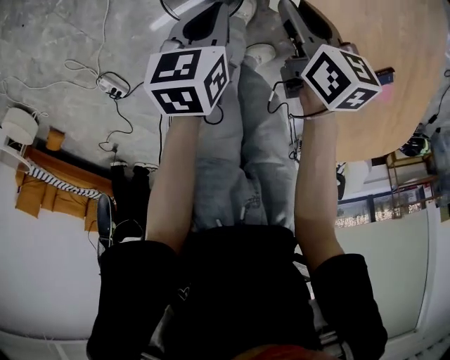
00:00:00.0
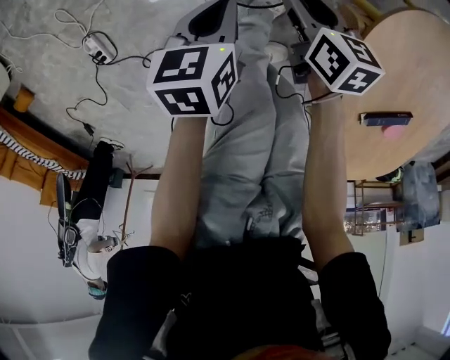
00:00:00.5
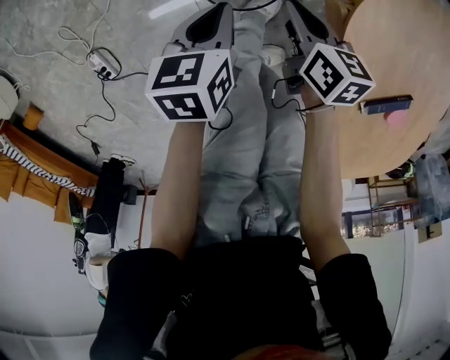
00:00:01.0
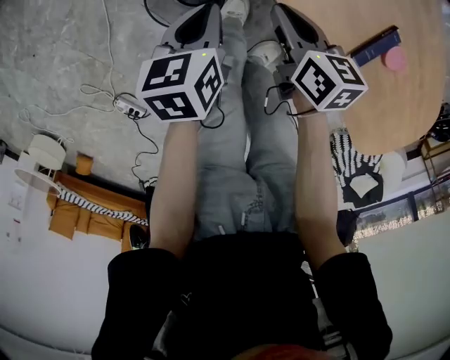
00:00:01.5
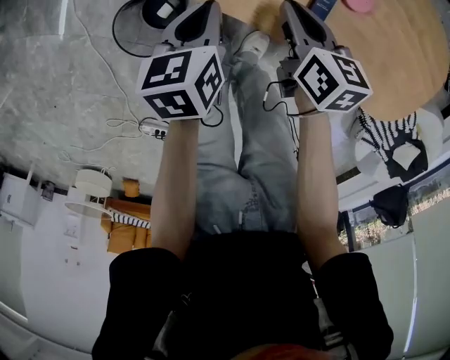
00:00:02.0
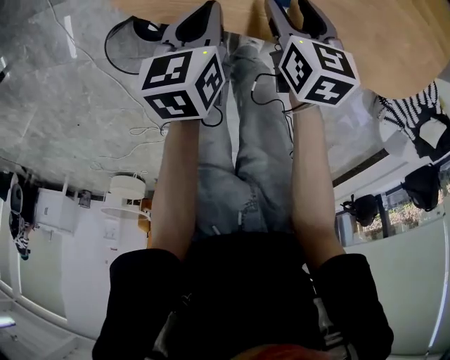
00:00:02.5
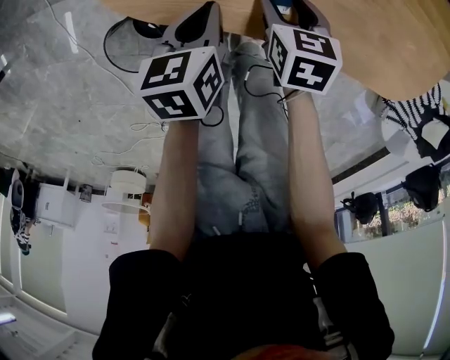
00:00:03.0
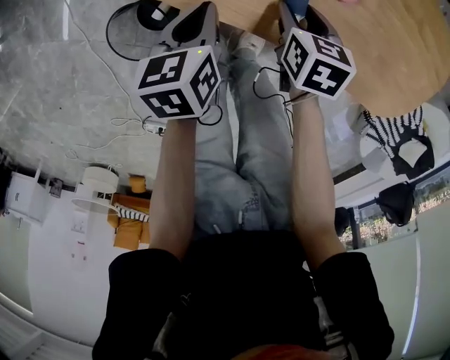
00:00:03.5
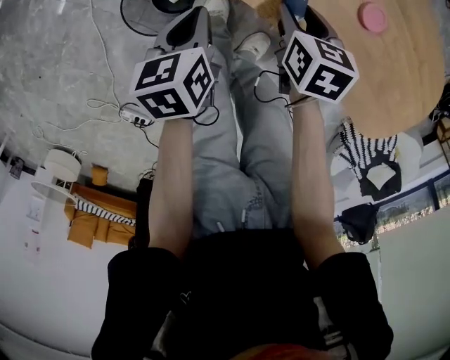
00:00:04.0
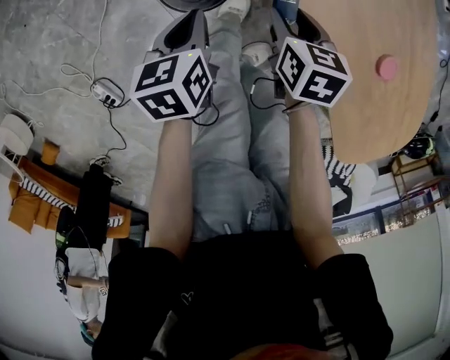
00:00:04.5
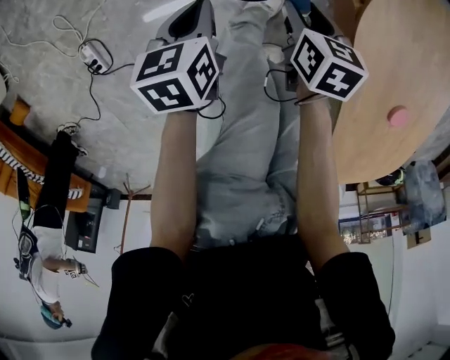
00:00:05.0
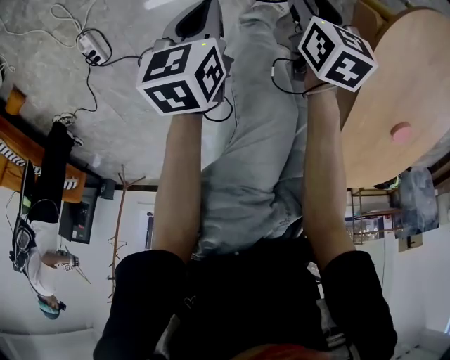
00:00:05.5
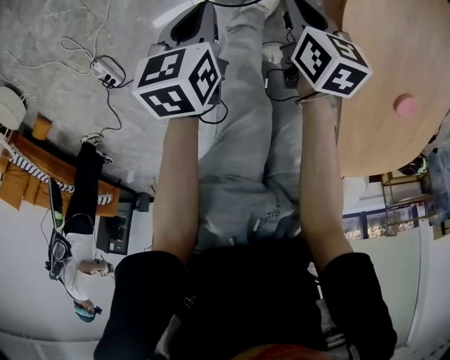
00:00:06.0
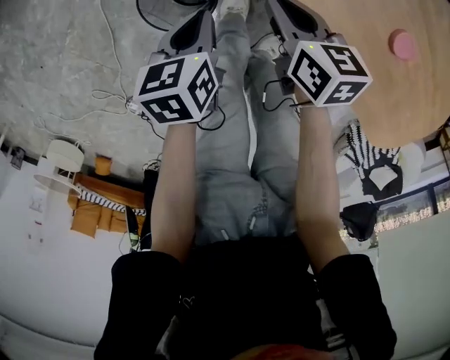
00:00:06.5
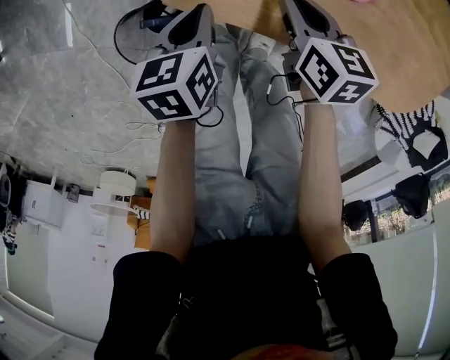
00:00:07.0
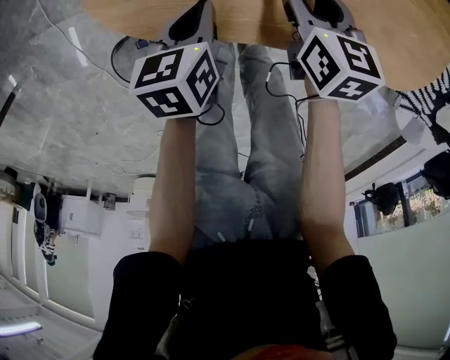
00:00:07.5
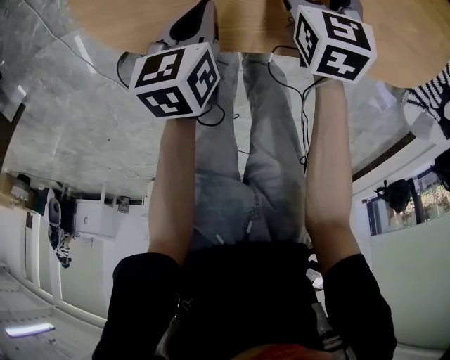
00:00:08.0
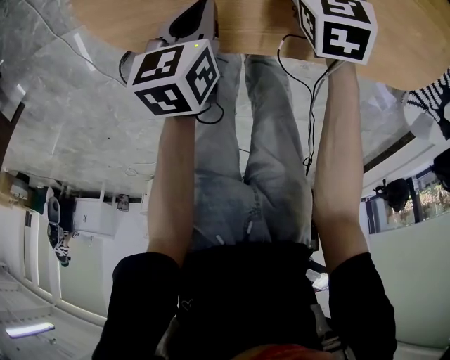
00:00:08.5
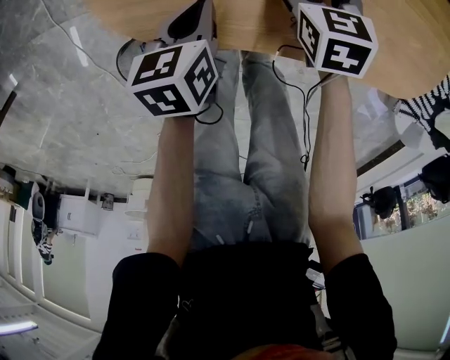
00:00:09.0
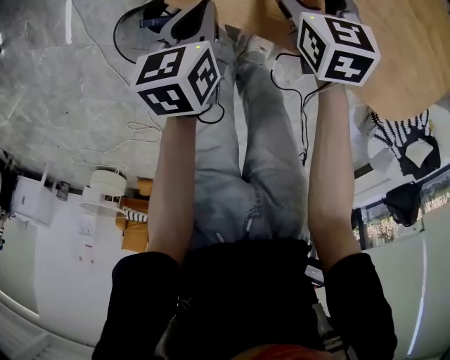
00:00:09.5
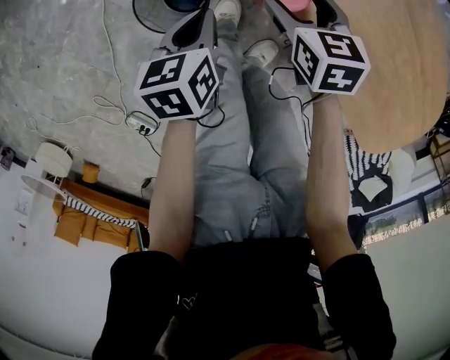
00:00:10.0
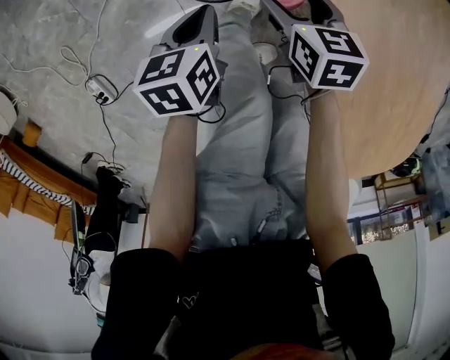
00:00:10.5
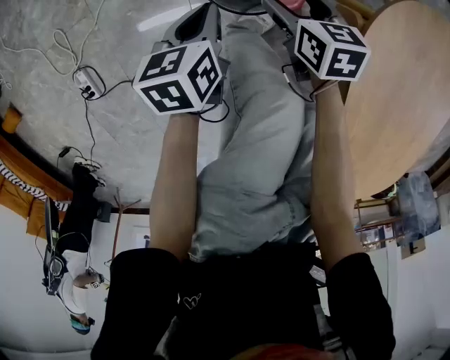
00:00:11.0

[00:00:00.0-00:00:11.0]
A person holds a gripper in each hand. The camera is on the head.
00:00:00.0 to 00:00:02.0: The left gripper changes place by approximately 20 cm, and swivels about 30 degrees. Meanwhile the right gripper reaches approximately 10 cm downward, then returns, and changes its angle by roughly 30 degrees.
00:00:02.0 to 00:00:03.5: The right gripper heads to the right and downward, covering approximately 10 cm, changes its angle by some 20 degrees, and opens its fingers.
00:00:03.5 to 00:00:05.5: The right gripper moves some 40 cm, and rotates some 50 degrees; the left gripper changes place by about 40 cm, and changes its angle by approximately 60 degrees.
00:00:05.5 to 00:00:07.5: The pair of grippers is taken roughly 40 cm. The right gripper swivels some 70 degrees, and closes and opens again; the left gripper rotates some 70 degrees.
00:00:07.5 to 00:00:09.0: The right gripper opens up.
00:00:09.0 to 00:00:11.0: The two grippers travel together, some 40 cm. The left gripper turns by some 70 degrees; the right gripper swivels some 70 degrees.

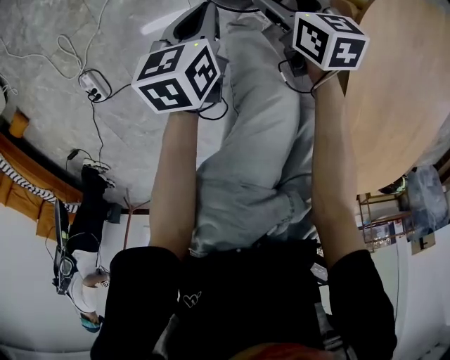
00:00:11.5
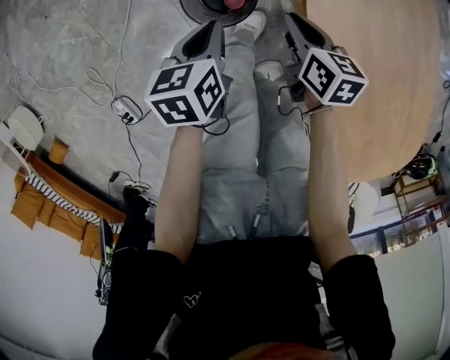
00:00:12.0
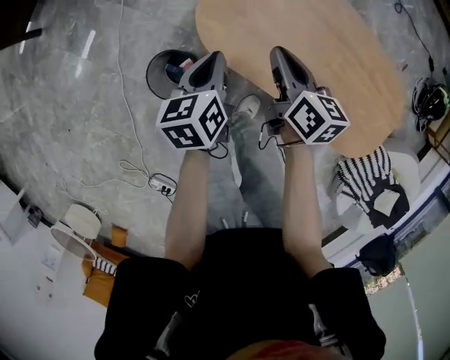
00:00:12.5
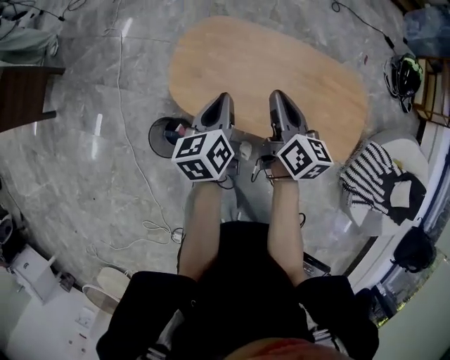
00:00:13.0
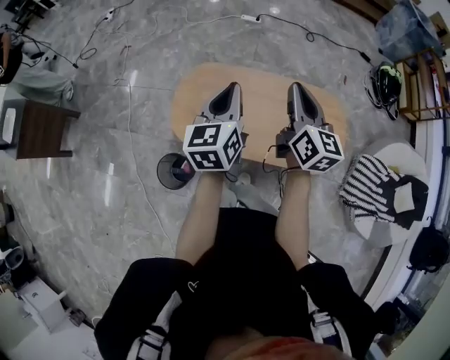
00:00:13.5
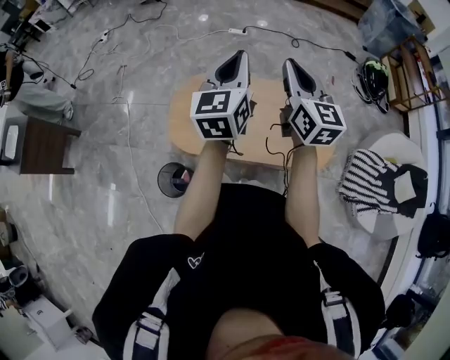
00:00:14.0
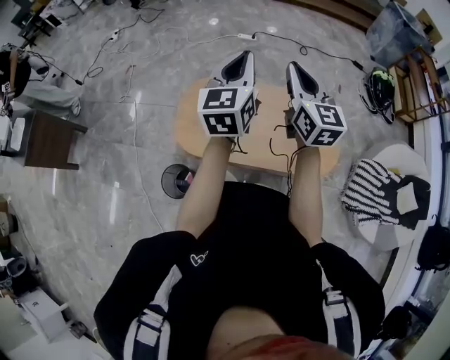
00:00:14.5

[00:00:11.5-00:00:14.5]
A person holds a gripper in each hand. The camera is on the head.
00:00:11.5 to 00:00:13.0: Both grippers are carried about 50 cm. The grippers both shift upward by roughly 50 cm. The right gripper rotates some 90 degrees, and closes. Meanwhile the left gripper swivels about 60 degrees.
00:00:13.0 to 00:00:14.5: Both grippers move upward and to the right, about 30 cm. The left gripper rotates some 40 degrees. Meanwhile the right gripper changes its angle by about 40 degrees.

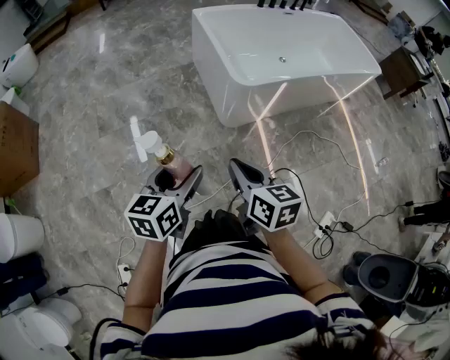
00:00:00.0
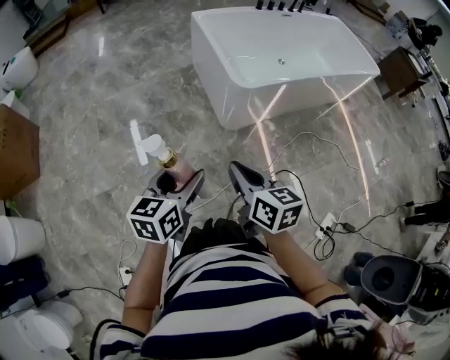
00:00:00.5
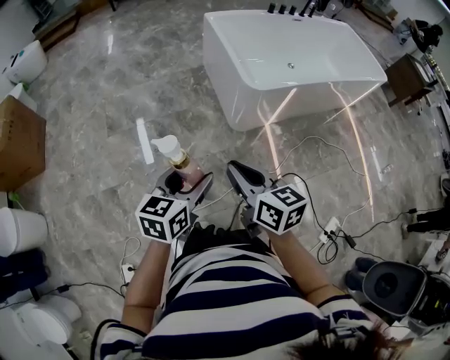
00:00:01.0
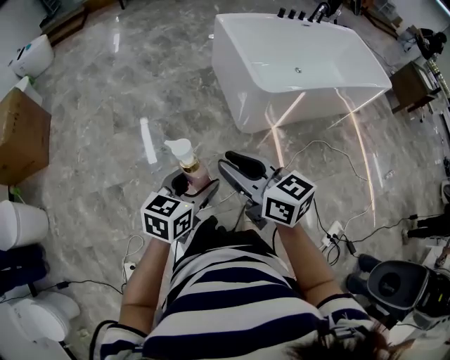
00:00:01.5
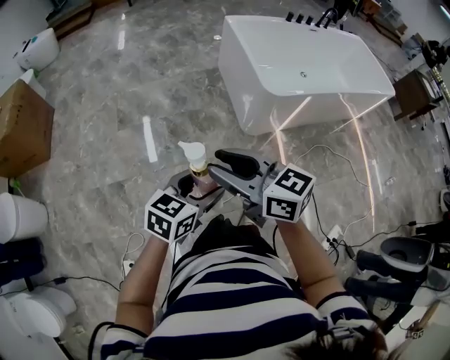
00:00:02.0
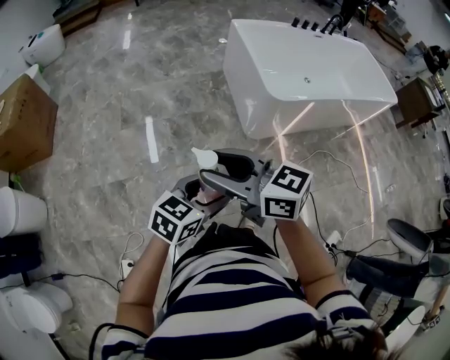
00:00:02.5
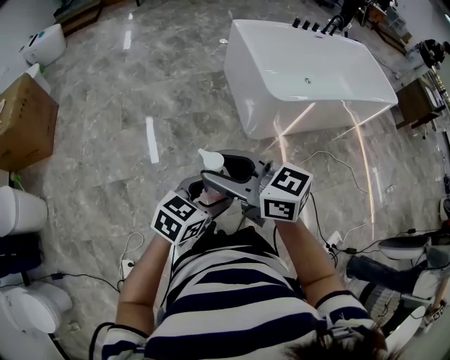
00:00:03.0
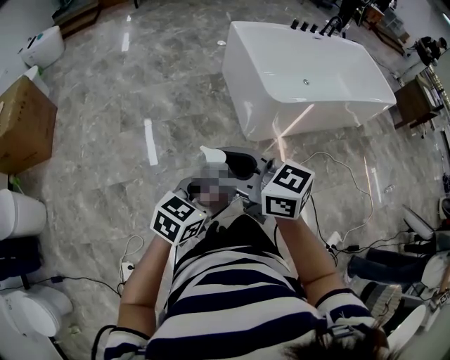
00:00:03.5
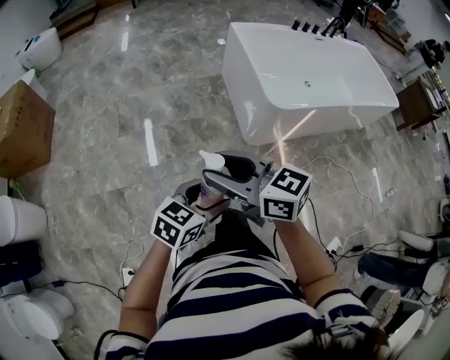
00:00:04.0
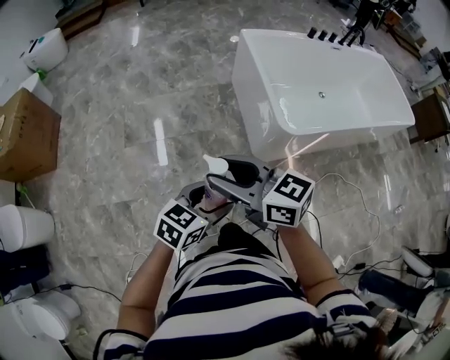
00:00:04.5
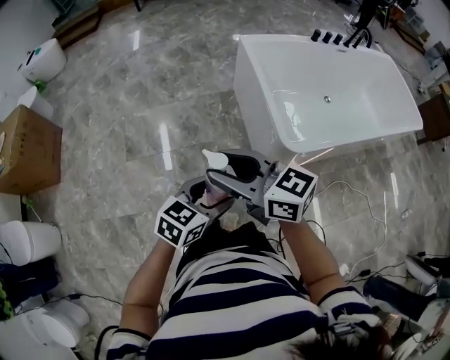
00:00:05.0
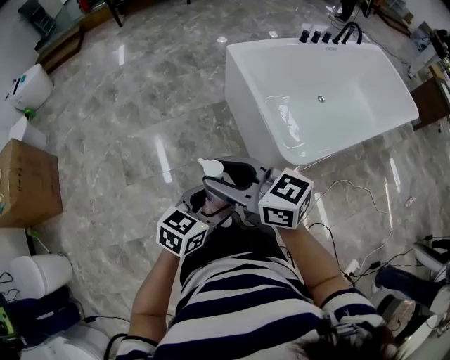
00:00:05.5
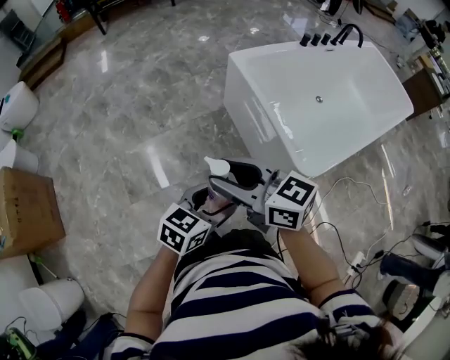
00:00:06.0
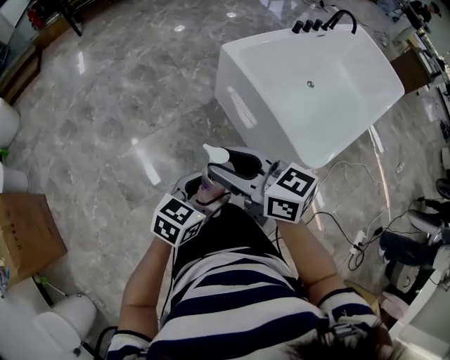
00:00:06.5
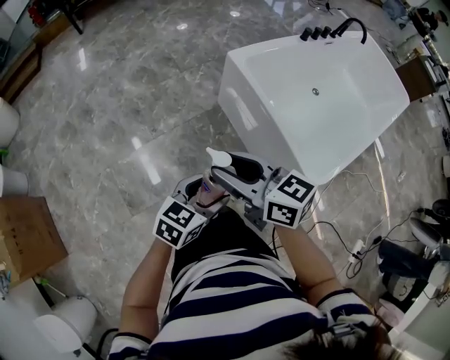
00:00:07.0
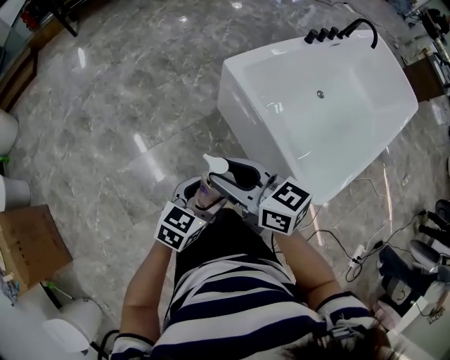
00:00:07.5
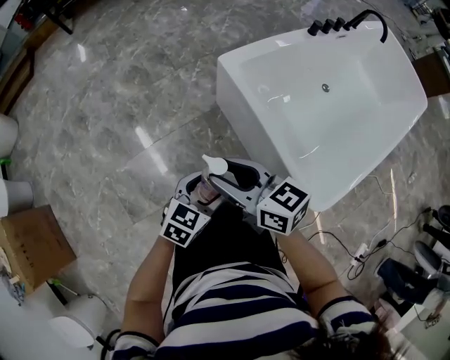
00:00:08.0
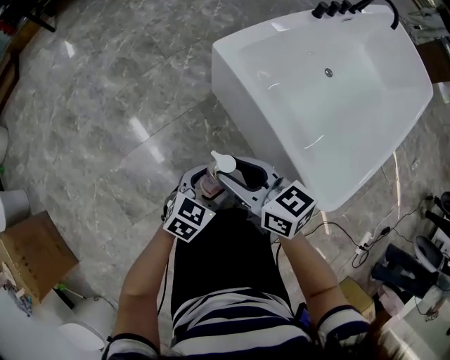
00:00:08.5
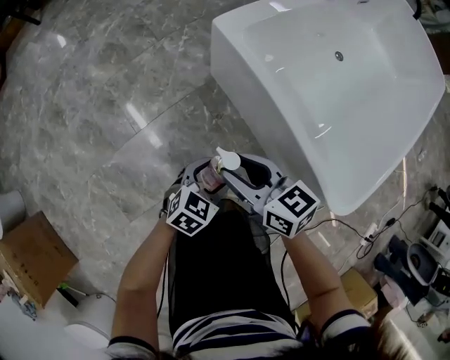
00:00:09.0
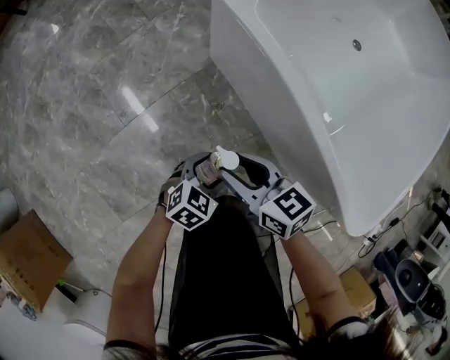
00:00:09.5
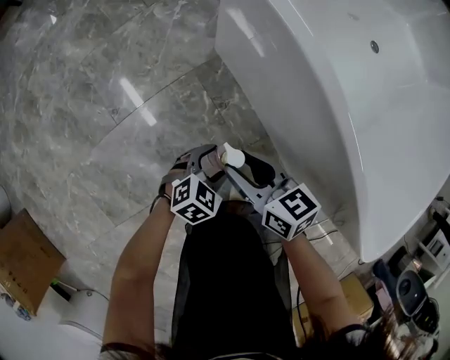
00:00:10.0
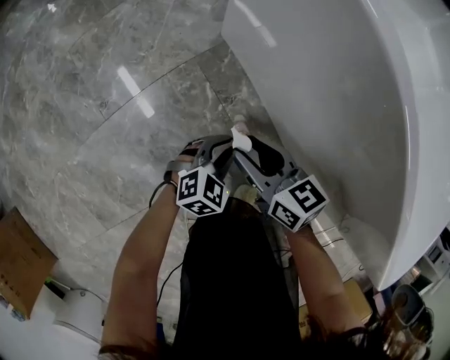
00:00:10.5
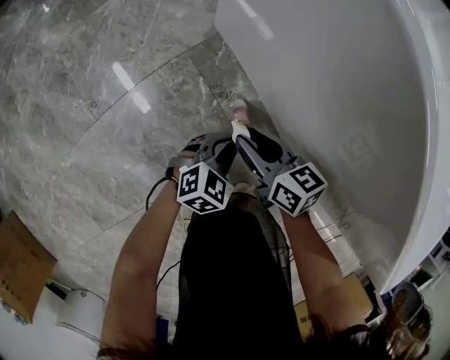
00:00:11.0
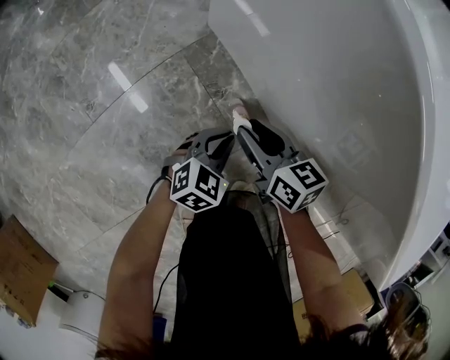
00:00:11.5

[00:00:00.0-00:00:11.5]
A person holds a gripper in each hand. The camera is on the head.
00:00:00.0 to 00:00:02.0: The right gripper is displaced to the left and upward by some 20 cm, rotates some 40 degrees, and opens its fingers. Meanwhile the left gripper heads backward, covering some 5 cm.
00:00:02.0 to 00:00:04.0: The grippers stay close to where they were, moving slightly.
00:00:04.0 to 00:00:06.0: Both grippers travel together forward, some 40 cm.
00:00:06.0 to 00:00:07.5: Both grippers move forward, about 20 cm.
00:00:07.5 to 00:00:09.5: The two grippers go some 35 cm downward. The left gripper swivels roughly 30 degrees.
00:00:09.5 to 00:00:11.5: The left gripper shifts roughly 20 cm downward and forward, and closes its fingers, while the right gripper moves downward, about 25 cm.

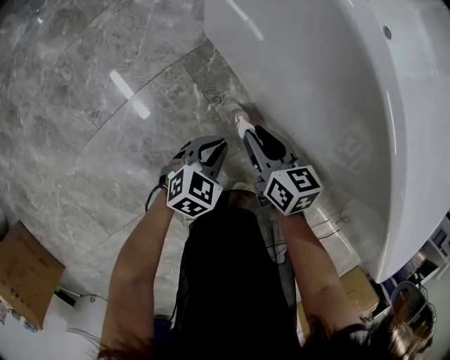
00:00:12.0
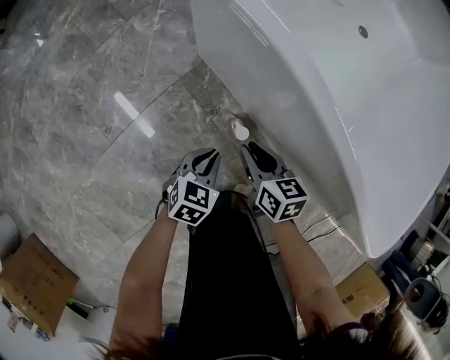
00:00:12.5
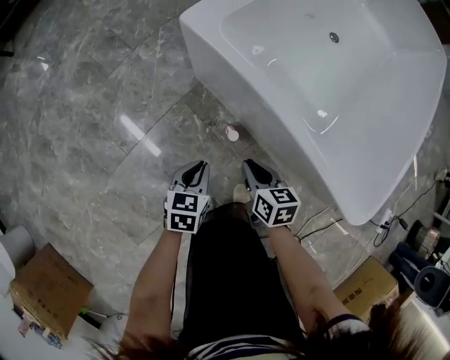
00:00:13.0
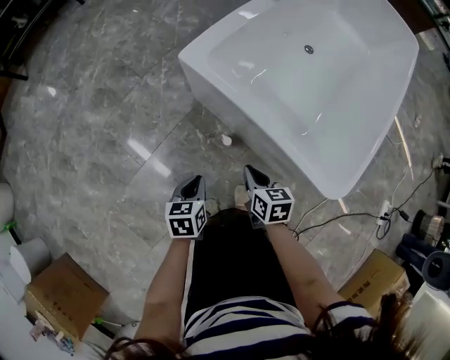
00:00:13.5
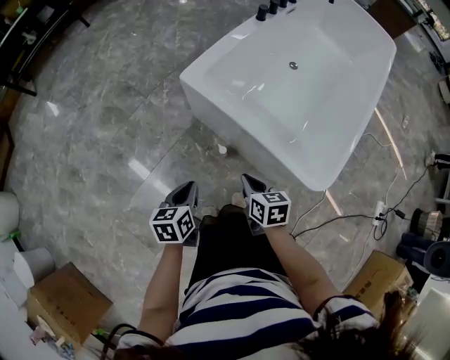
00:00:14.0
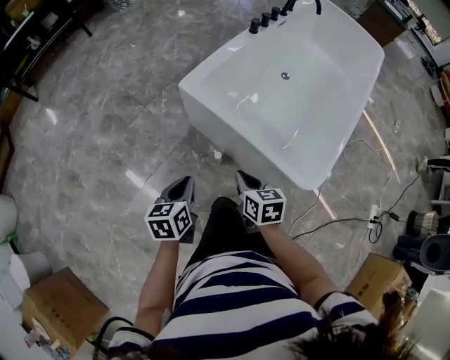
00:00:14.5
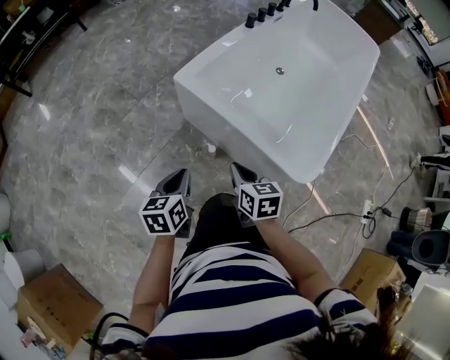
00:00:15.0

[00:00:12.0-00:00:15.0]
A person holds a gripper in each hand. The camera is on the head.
00:00:12.0 to 00:00:13.5: Both grippers travel together upward, roughly 30 cm. The right gripper closes; the left gripper rotates some 30 degrees.
00:00:13.5 to 00:00:15.0: The grippers both shift upward by roughly 15 cm.
